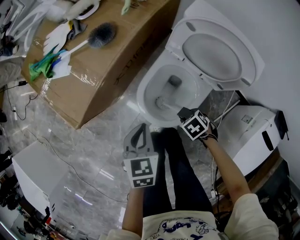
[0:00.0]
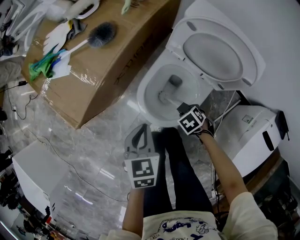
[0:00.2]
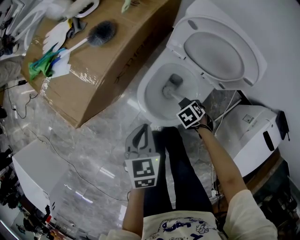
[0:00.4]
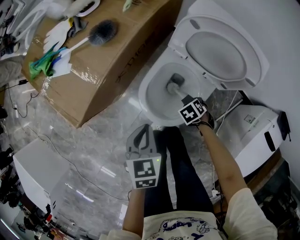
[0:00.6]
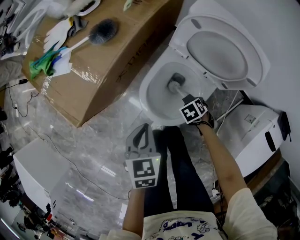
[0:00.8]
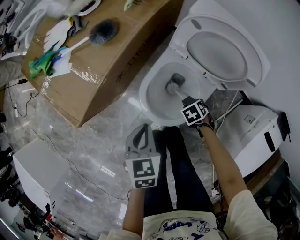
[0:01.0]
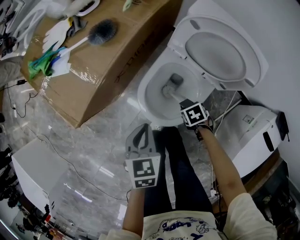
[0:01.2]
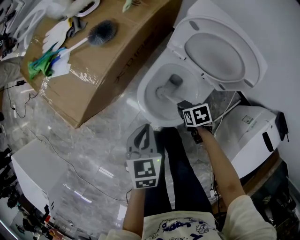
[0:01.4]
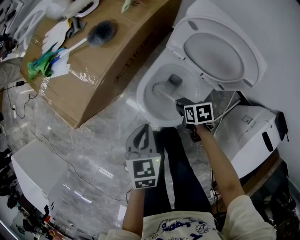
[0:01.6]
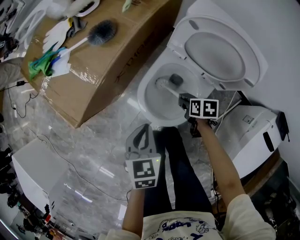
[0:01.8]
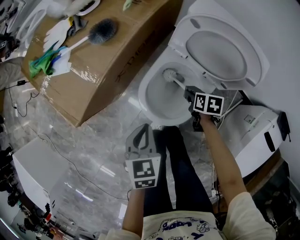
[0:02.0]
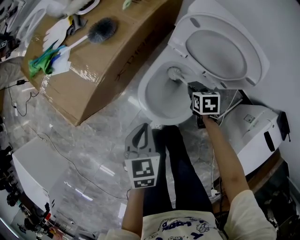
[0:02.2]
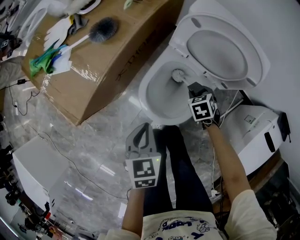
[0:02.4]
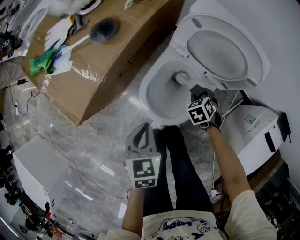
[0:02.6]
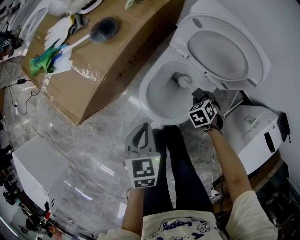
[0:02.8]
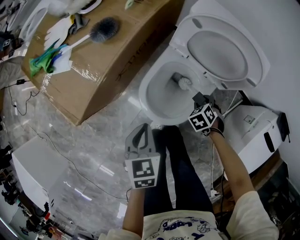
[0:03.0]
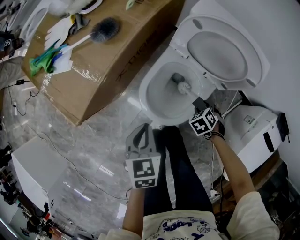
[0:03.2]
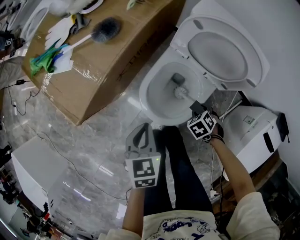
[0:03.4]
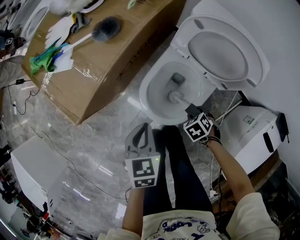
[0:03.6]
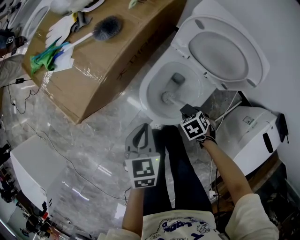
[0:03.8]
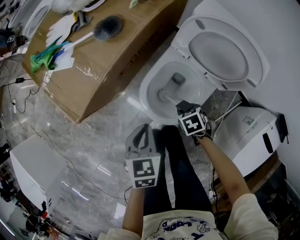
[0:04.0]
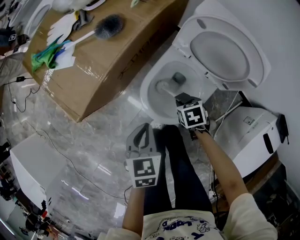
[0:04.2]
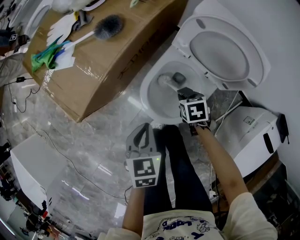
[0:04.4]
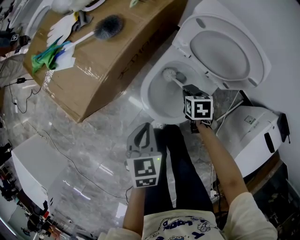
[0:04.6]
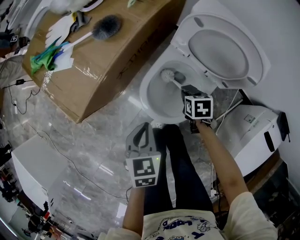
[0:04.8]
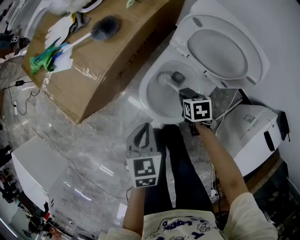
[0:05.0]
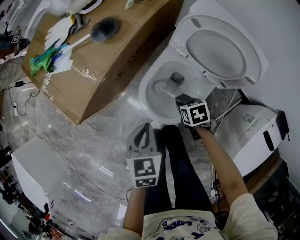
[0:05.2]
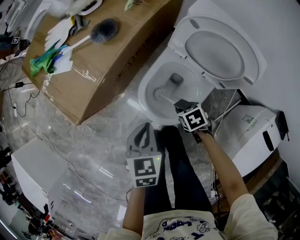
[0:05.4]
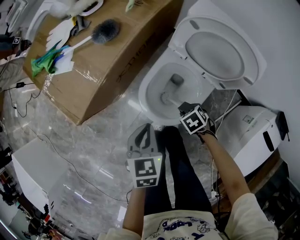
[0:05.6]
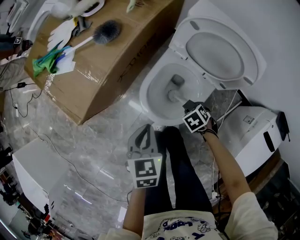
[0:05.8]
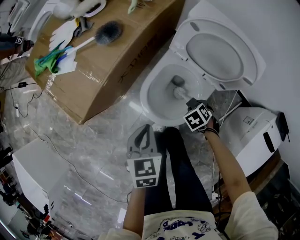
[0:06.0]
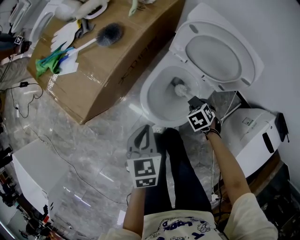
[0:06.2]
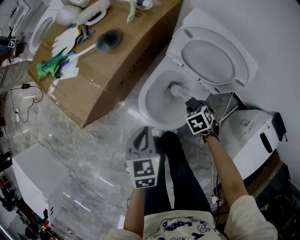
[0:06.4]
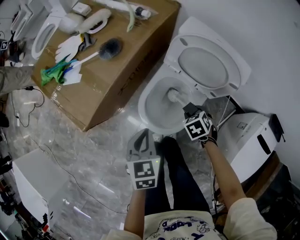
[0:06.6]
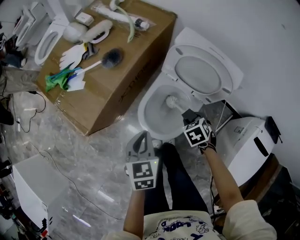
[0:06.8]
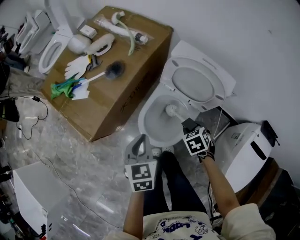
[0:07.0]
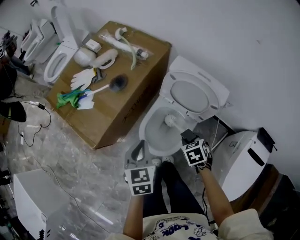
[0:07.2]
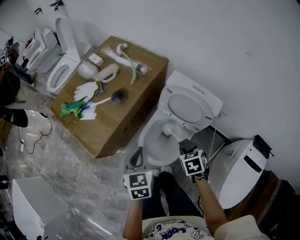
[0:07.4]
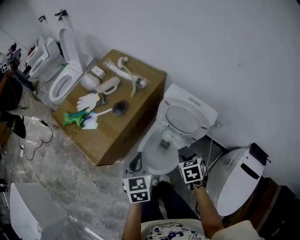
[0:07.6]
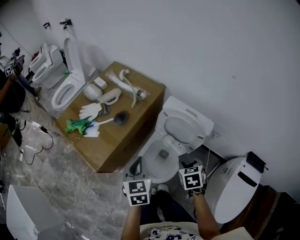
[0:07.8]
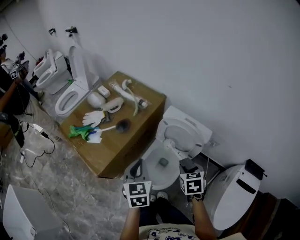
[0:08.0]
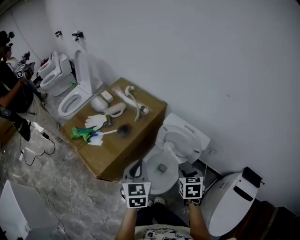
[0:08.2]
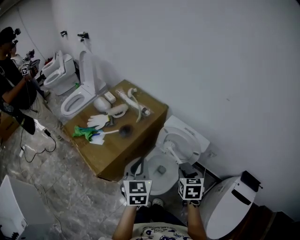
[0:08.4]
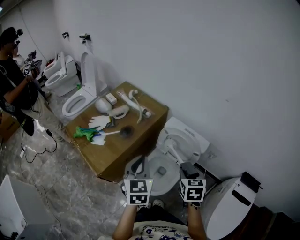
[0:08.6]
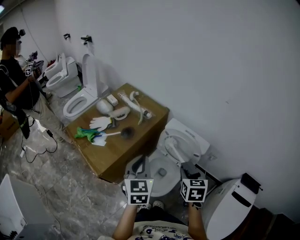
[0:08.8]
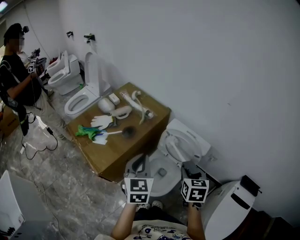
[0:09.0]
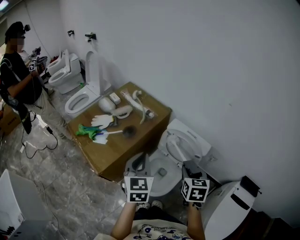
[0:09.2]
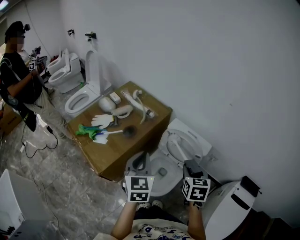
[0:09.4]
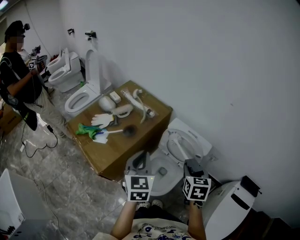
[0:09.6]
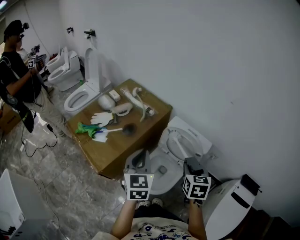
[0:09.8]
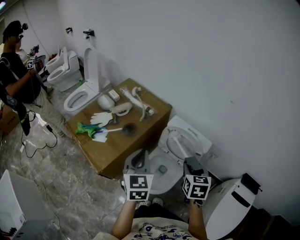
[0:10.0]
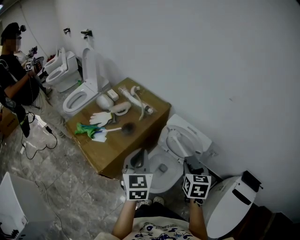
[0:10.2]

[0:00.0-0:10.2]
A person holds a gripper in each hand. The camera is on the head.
0.0 to 1.4 s: The right gripper swivels roughly 30 degrees.
1.4 to 3.0 s: The right gripper shifts by about 5 cm, and rotates approximately 40 degrees.
3.0 to 4.4 s: The right gripper shifts by roughly 10 cm, and turns by some 30 degrees.
4.4 to 5.8 s: The right gripper moves about 10 cm, and swivels some 30 degrees.
5.8 to 7.2 s: The left gripper heads upward, covering approximately 15 cm; the right gripper moves upward, some 20 cm, and changes its angle by some 20 degrees.
7.2 to 8.8 s: Both grippers move upward, some 20 cm. The left gripper swivels about 20 degrees; the right gripper changes its angle by some 30 degrees.
8.8 to 10.2 s: The grippers make only small movements.

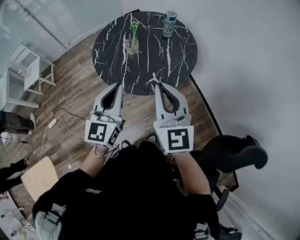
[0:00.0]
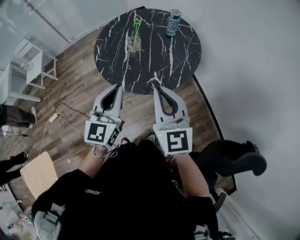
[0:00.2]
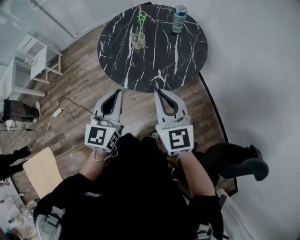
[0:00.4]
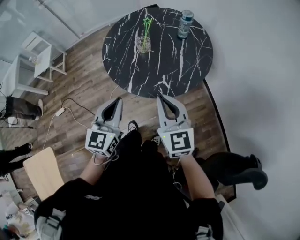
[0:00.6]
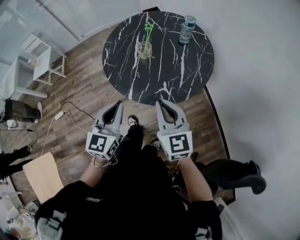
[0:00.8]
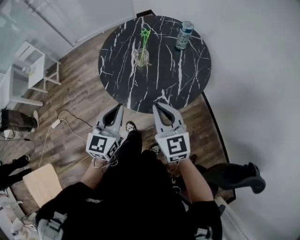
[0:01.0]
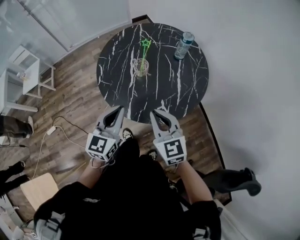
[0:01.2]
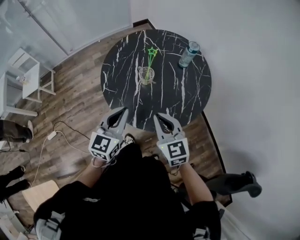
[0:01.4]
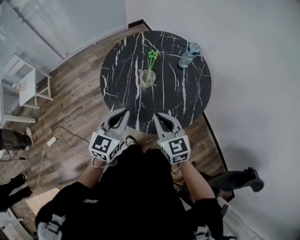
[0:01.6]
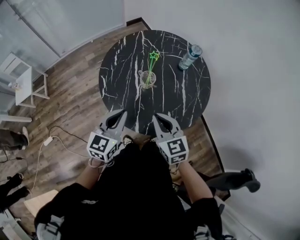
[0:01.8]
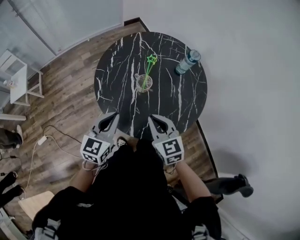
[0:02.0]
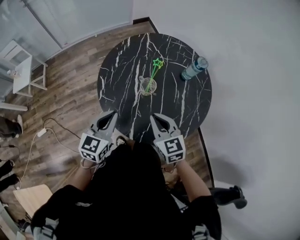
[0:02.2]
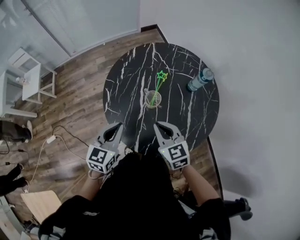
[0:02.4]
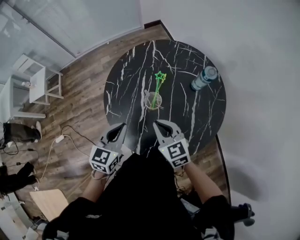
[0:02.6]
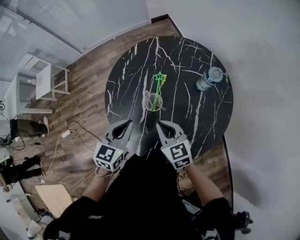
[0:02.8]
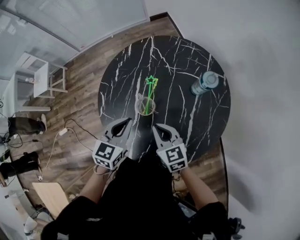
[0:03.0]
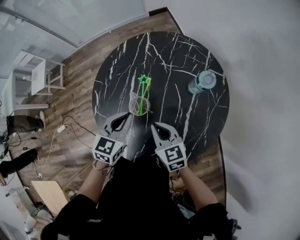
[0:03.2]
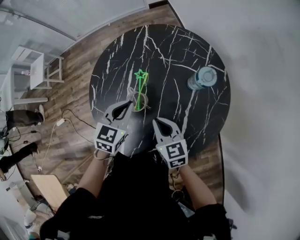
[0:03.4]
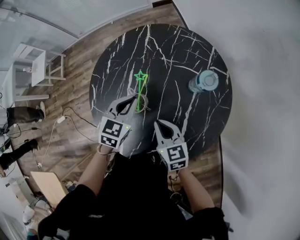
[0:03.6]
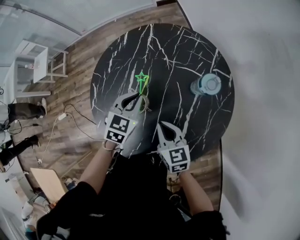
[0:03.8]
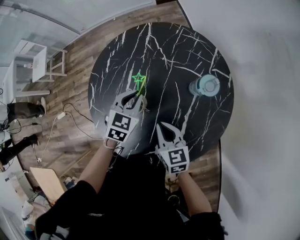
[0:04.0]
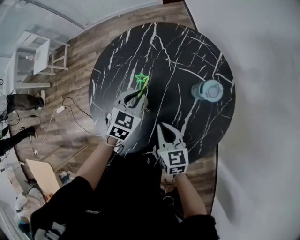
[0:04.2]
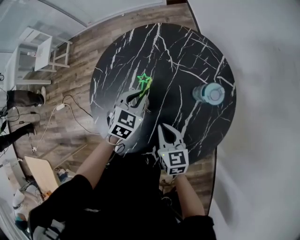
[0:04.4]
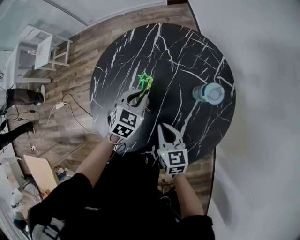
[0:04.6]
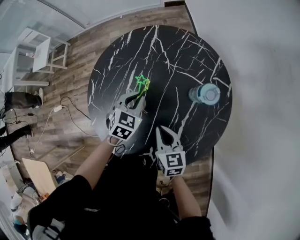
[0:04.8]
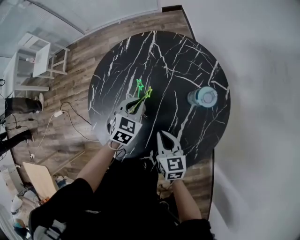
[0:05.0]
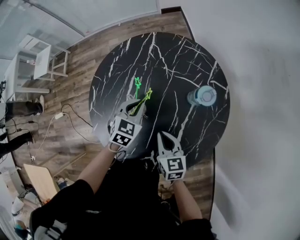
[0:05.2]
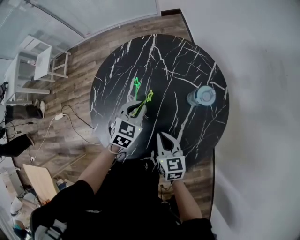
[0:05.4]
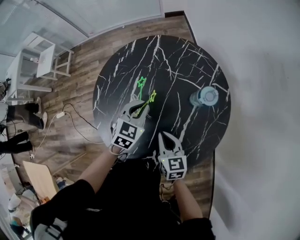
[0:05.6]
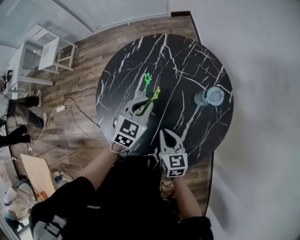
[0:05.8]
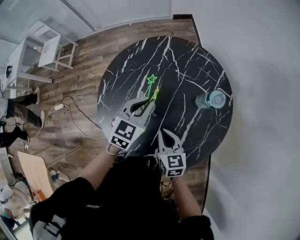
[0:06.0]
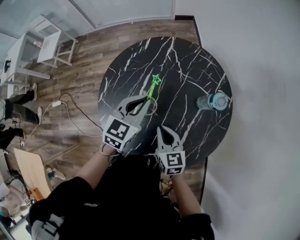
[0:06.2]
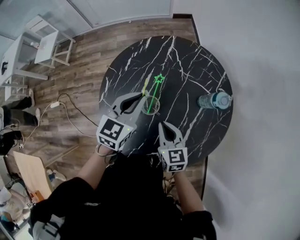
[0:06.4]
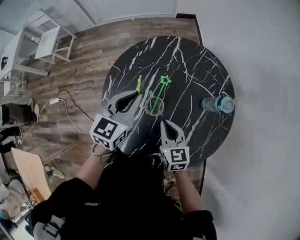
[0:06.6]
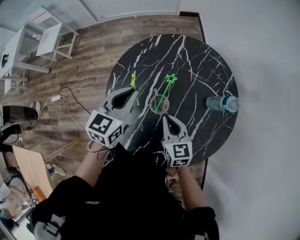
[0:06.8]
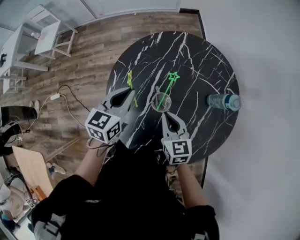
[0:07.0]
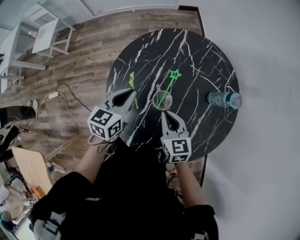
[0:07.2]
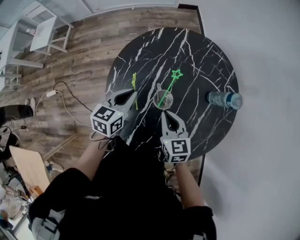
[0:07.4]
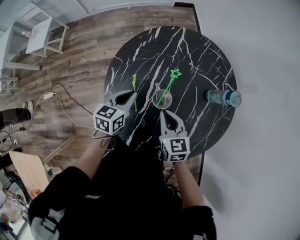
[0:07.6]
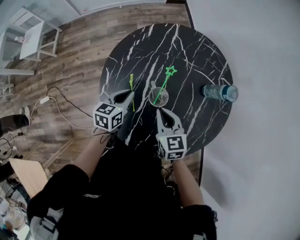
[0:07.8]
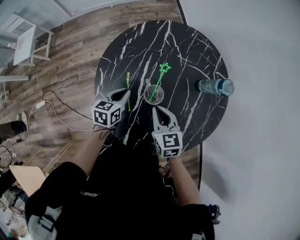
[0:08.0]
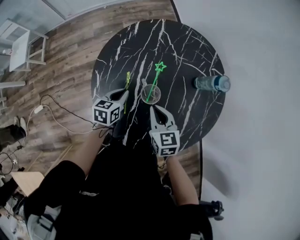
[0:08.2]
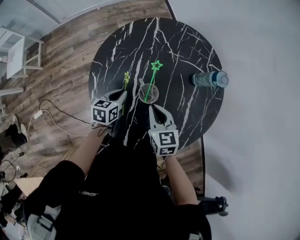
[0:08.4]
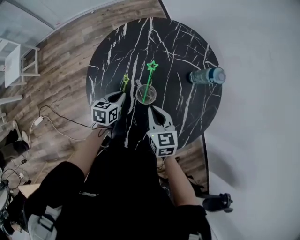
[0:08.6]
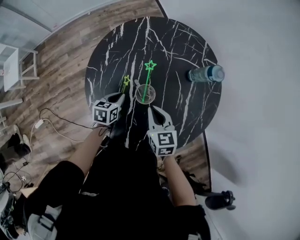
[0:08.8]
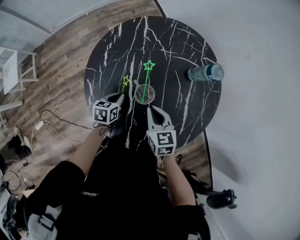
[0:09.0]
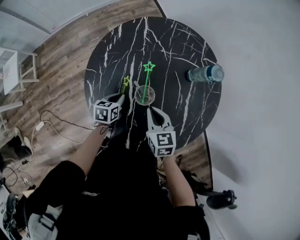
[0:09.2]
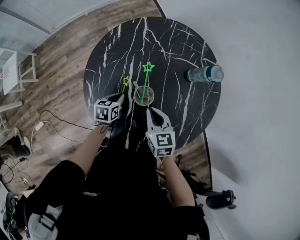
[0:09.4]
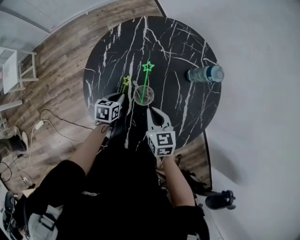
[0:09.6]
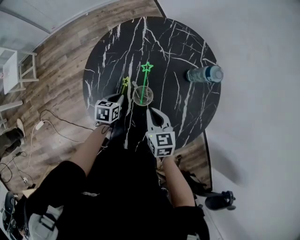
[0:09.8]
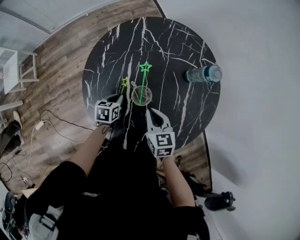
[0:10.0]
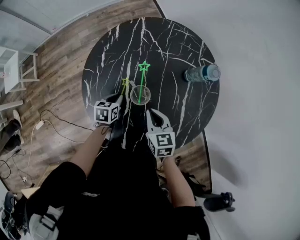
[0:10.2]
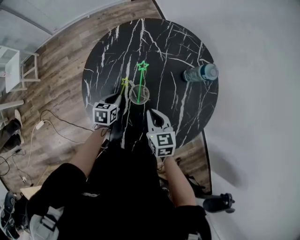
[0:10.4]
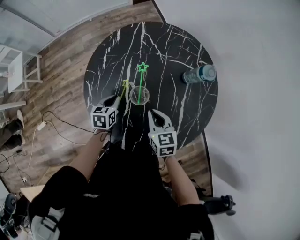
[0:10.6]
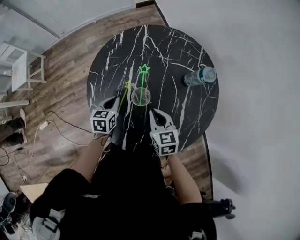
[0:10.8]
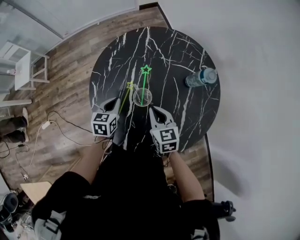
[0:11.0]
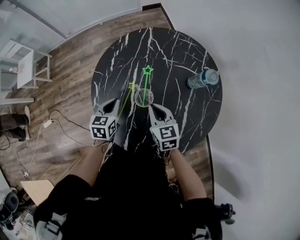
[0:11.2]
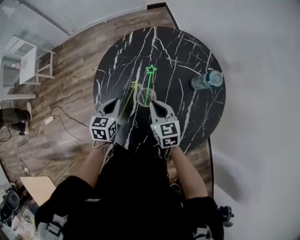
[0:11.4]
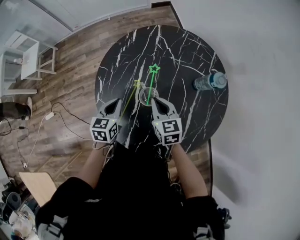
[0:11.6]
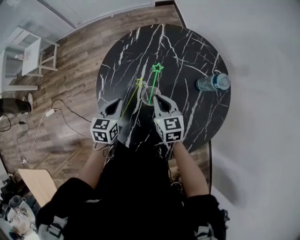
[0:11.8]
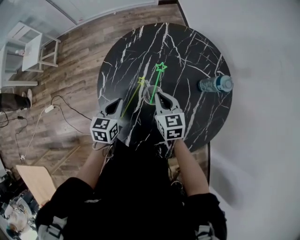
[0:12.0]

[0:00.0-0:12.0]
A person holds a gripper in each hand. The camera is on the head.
0.0 to 1.6 s: Both grippers travel together forward, downward and to the left, about 25 cm. The right gripper rotates some 30 degrees.
1.6 to 3.0 s: The right gripper shifts some 20 cm forward and downward. Meanwhile the left gripper is displaced forward, downward and to the right by approximately 20 cm.
3.0 to 4.4 s: The left gripper heads downward, forward and to the right, covering about 15 cm, while the right gripper goes approximately 10 cm to the right and downward.
4.4 to 6.0 s: The left gripper travels upward by some 10 cm.
6.0 to 7.6 s: The left gripper heads to the left, covering about 15 cm, and turns by some 30 degrees. Meanwhile the right gripper goes about 10 cm to the left.
7.6 to 9.0 s: The left gripper moves downward, approximately 10 cm, and swivels roughly 20 degrees.
9.0 to 10.4 s: The grippers stay close to where they were, moving slightly.
10.4 to 12.0 s: The left gripper heads upward, covering some 10 cm. The right gripper is displaced forward by some 10 cm.

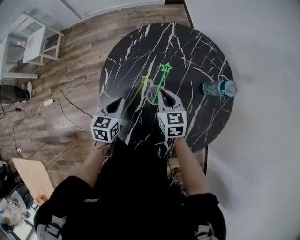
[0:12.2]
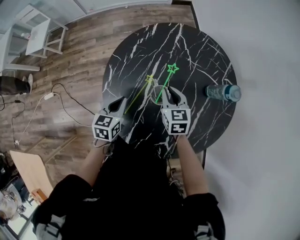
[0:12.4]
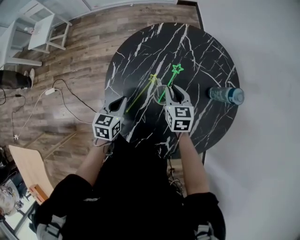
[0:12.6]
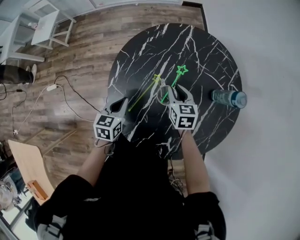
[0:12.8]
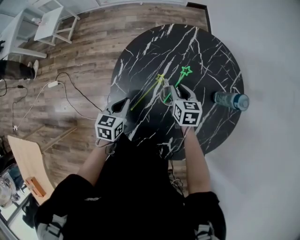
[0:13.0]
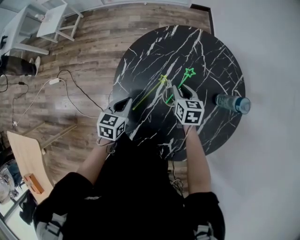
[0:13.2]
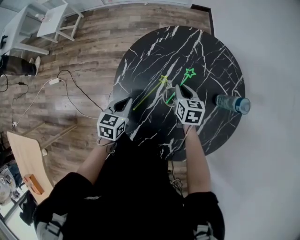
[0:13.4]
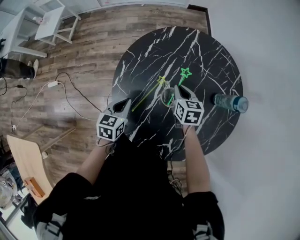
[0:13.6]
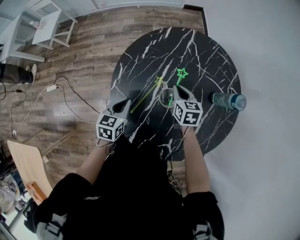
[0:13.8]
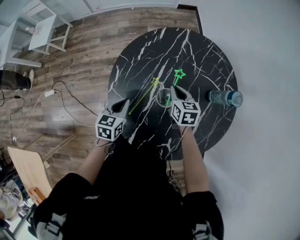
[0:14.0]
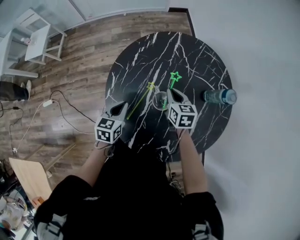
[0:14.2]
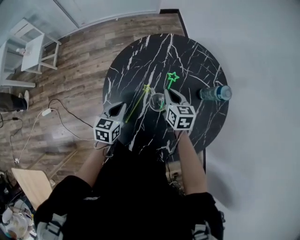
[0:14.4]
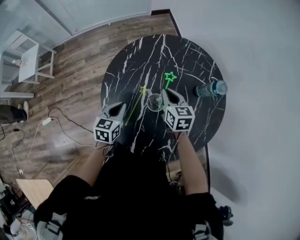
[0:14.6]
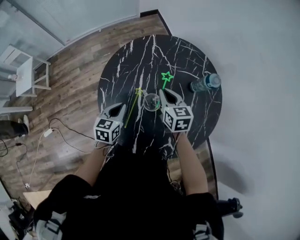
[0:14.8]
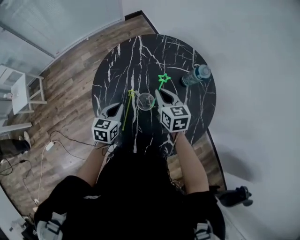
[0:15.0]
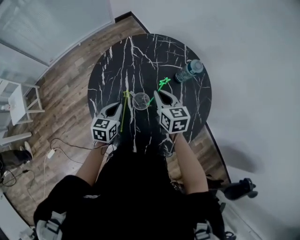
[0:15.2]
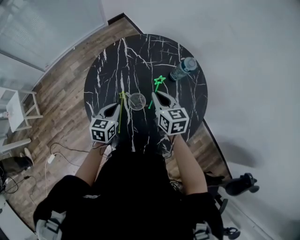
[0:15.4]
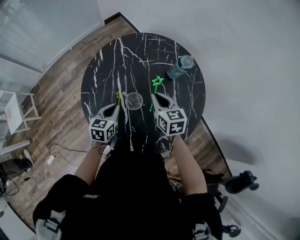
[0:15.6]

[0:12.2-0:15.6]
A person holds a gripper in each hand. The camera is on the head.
12.2 to 13.8 s: The right gripper shifts by about 5 cm, and opens, then closes once more.
13.8 to 15.6 s: The right gripper heads upward, covering approximately 10 cm, and rotates roughly 30 degrees. The left gripper ends up about 10 cm from where it was, and turns by approximately 30 degrees.
